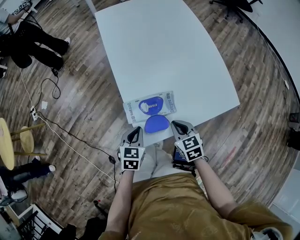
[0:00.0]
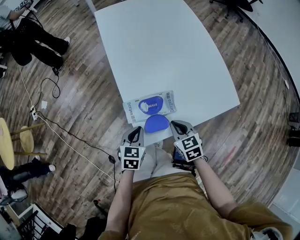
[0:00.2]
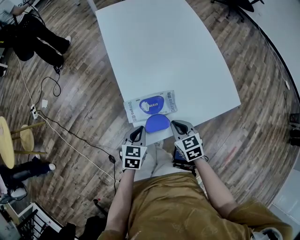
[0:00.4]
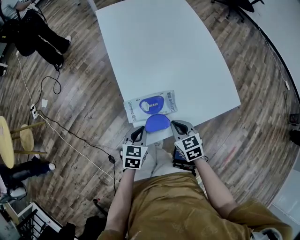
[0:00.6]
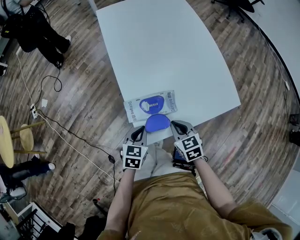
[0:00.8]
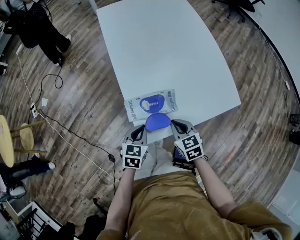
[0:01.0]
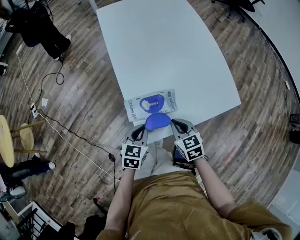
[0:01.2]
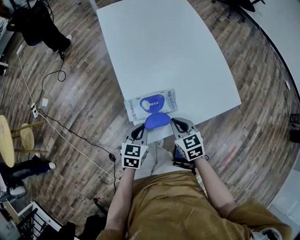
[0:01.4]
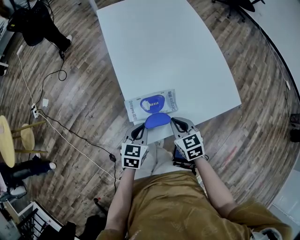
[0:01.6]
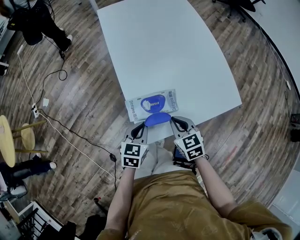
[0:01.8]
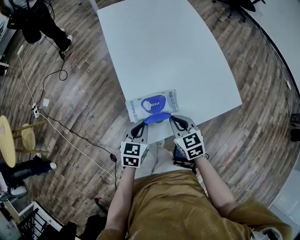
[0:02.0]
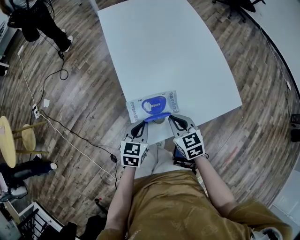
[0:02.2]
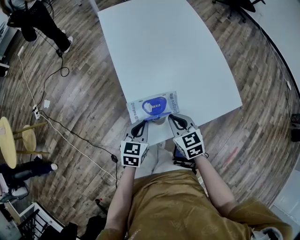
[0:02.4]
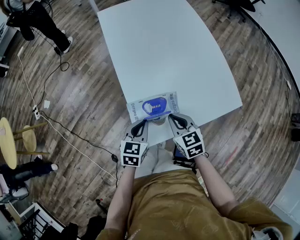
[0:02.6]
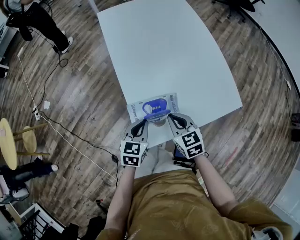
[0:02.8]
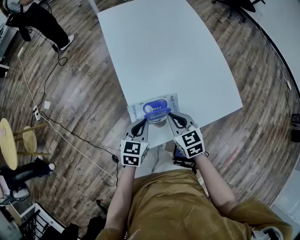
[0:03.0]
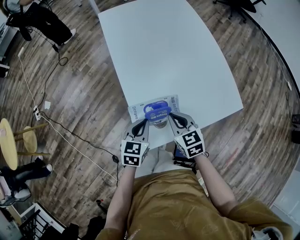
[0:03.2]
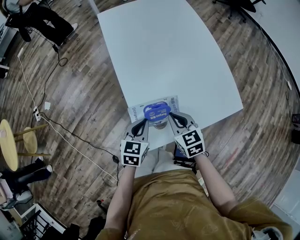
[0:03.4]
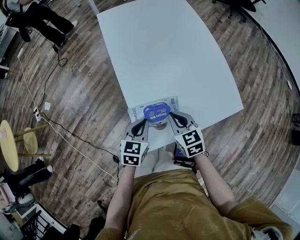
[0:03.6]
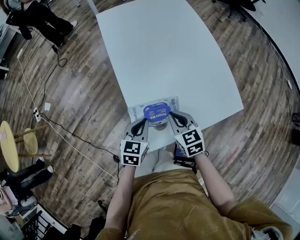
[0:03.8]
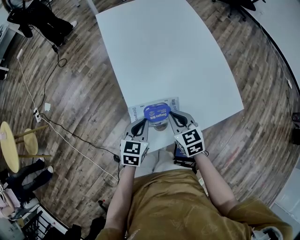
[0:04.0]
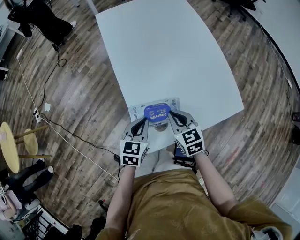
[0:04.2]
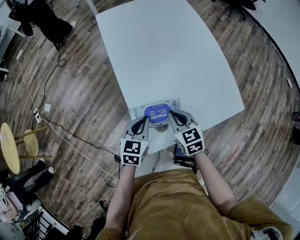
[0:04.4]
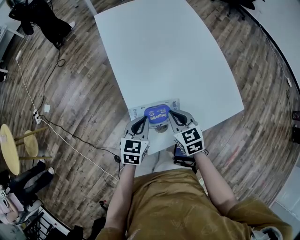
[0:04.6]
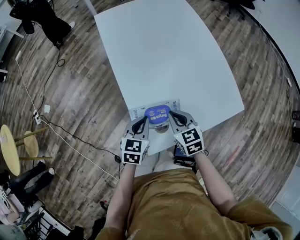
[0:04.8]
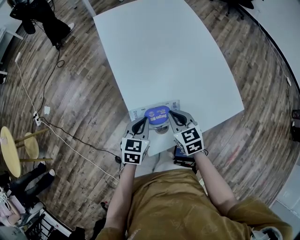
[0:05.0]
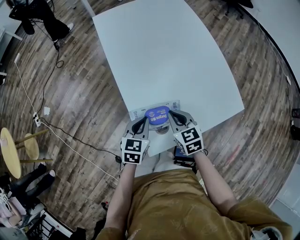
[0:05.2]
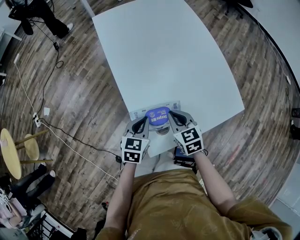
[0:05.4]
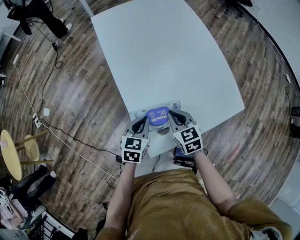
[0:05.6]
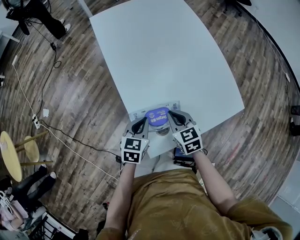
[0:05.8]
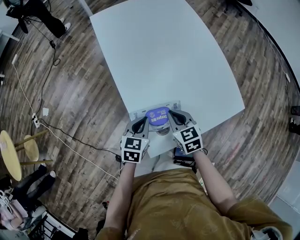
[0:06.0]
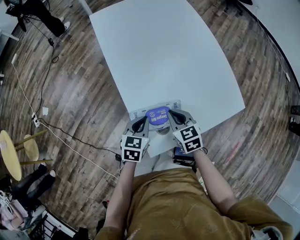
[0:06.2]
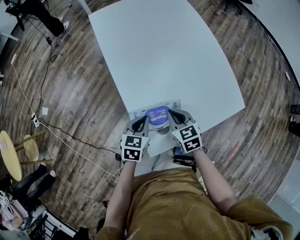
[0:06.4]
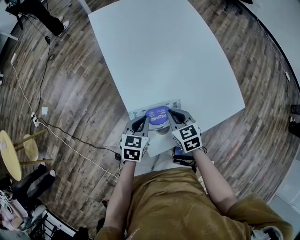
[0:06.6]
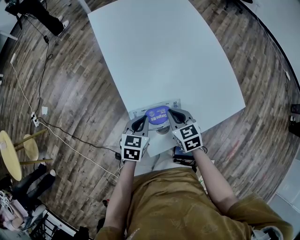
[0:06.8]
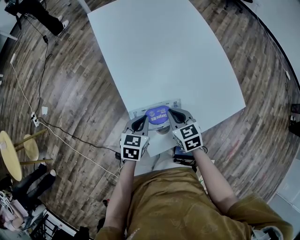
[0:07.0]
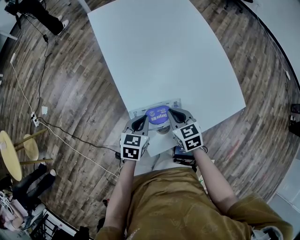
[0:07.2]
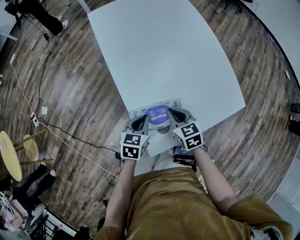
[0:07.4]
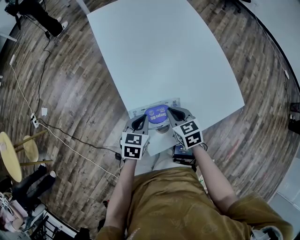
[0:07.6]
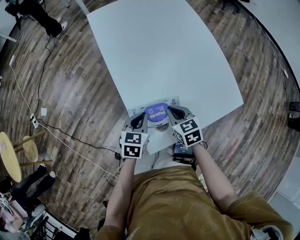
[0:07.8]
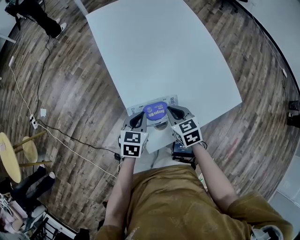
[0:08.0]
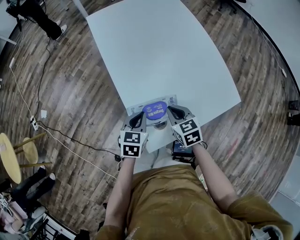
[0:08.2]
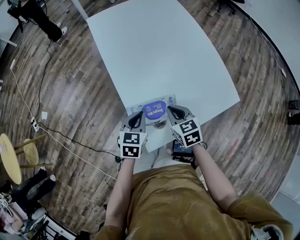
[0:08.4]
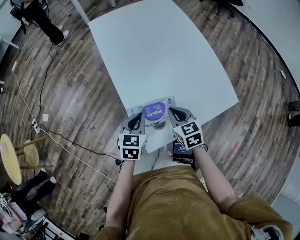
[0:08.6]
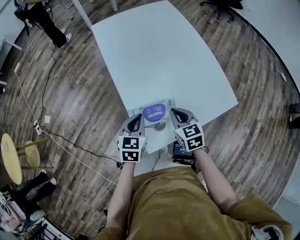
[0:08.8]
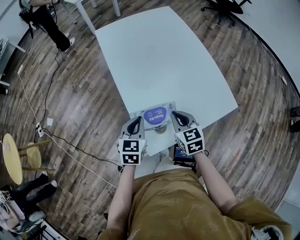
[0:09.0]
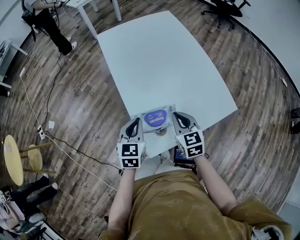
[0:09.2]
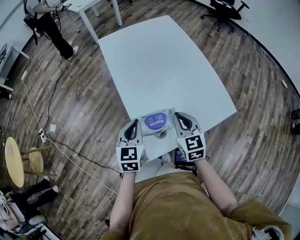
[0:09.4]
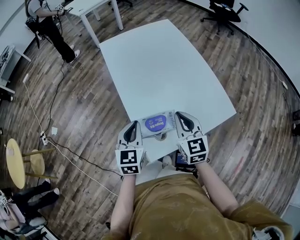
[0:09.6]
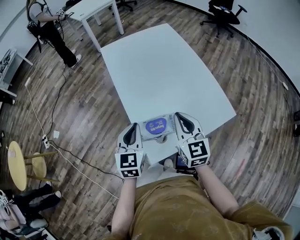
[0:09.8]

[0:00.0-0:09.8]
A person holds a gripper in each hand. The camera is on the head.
0:00.0 to 0:01.4: The grippers stay close to where they were, moving slightly.
0:01.4 to 0:02.8: The right gripper shifts by some 5 cm.
0:02.8 to 0:05.6: There are only small adjustments of the grippers.
0:05.6 to 0:08.4: There are only small adjustments of the grippers.
0:08.4 to 0:09.8: Both grippers move upward, about 15 cm. The right gripper changes its angle by roughly 30 degrees. Meanwhile the left gripper changes its angle by some 20 degrees.

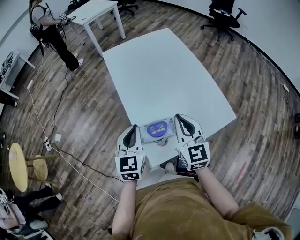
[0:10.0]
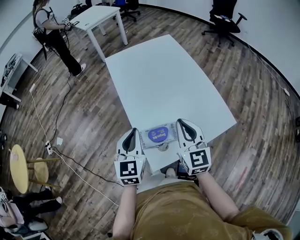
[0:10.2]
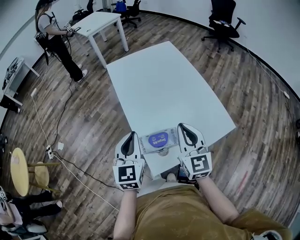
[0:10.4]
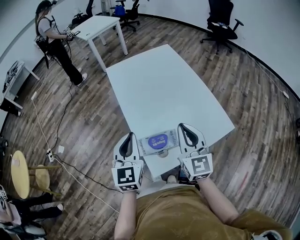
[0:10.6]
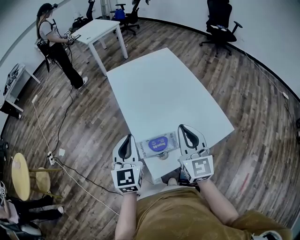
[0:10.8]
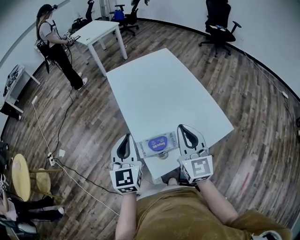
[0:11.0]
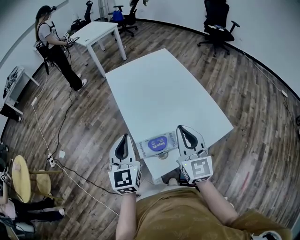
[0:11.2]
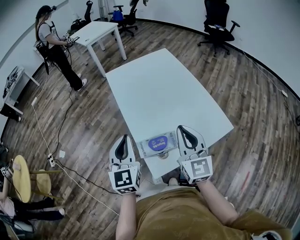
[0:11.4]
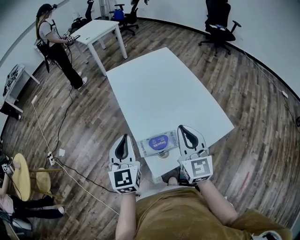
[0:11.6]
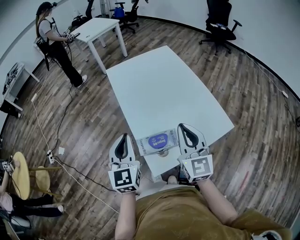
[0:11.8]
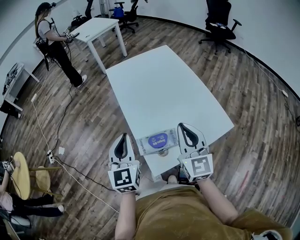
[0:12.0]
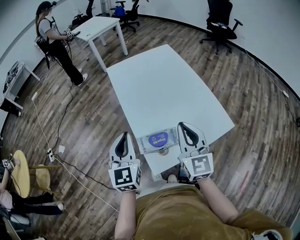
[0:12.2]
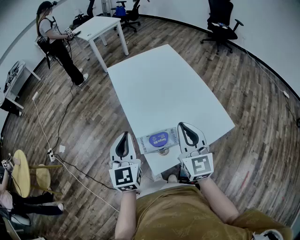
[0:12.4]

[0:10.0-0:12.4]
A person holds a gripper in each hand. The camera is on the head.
0:10.0 to 0:11.2: The two grippers go roughly 10 cm upward.
0:11.2 to 0:12.4: The grippers make only small movements.

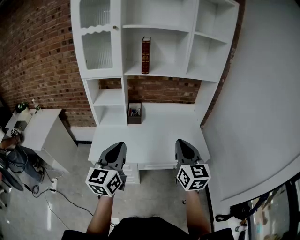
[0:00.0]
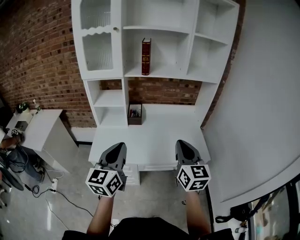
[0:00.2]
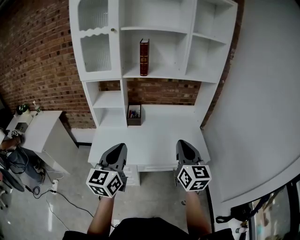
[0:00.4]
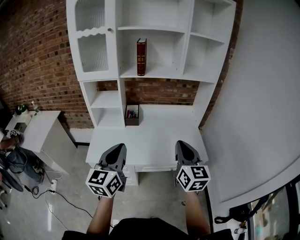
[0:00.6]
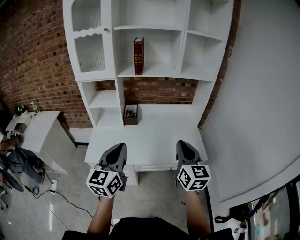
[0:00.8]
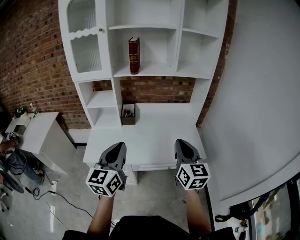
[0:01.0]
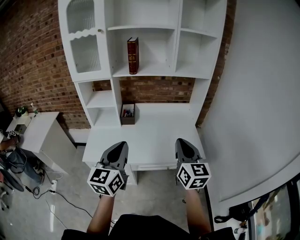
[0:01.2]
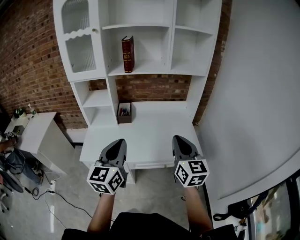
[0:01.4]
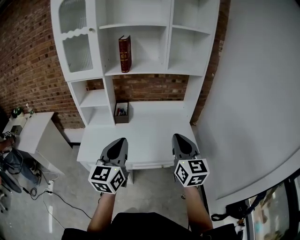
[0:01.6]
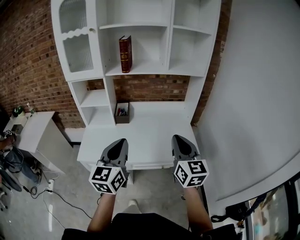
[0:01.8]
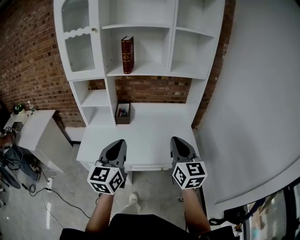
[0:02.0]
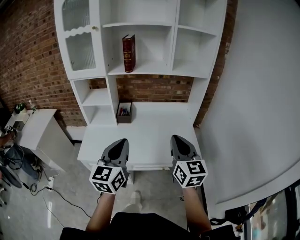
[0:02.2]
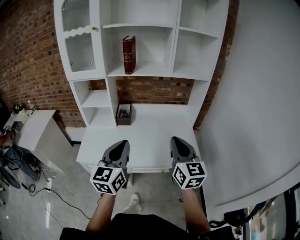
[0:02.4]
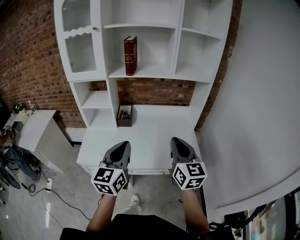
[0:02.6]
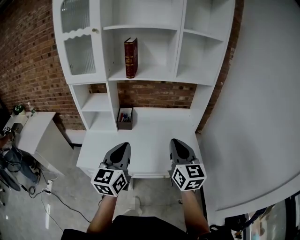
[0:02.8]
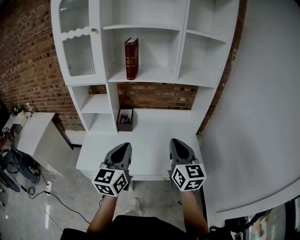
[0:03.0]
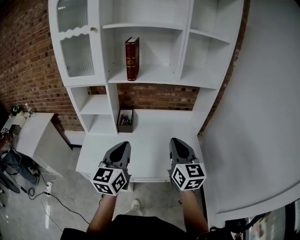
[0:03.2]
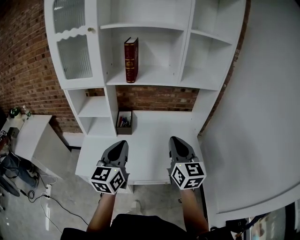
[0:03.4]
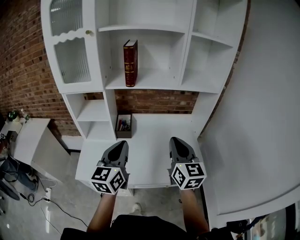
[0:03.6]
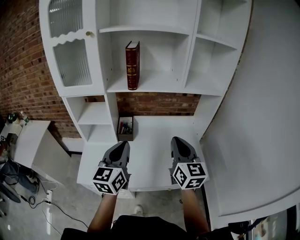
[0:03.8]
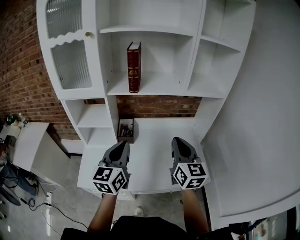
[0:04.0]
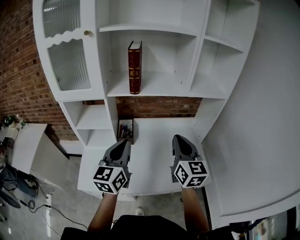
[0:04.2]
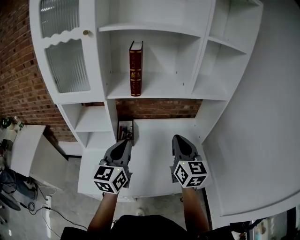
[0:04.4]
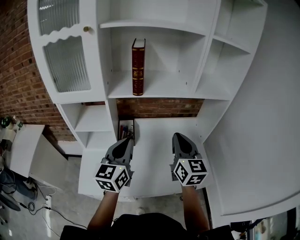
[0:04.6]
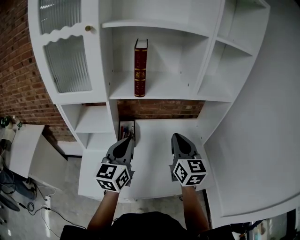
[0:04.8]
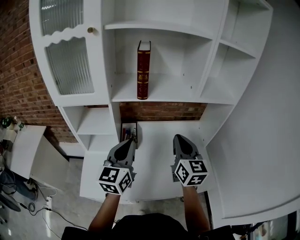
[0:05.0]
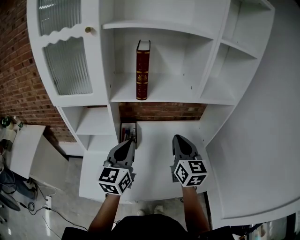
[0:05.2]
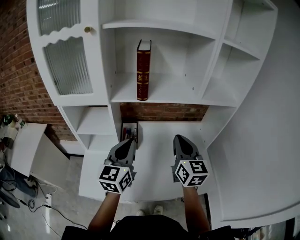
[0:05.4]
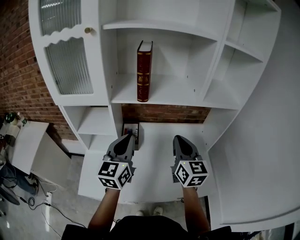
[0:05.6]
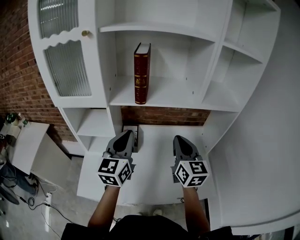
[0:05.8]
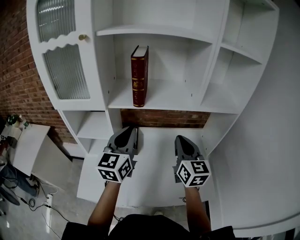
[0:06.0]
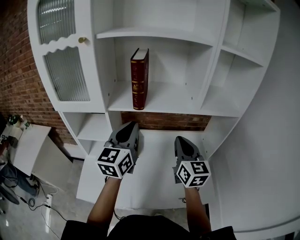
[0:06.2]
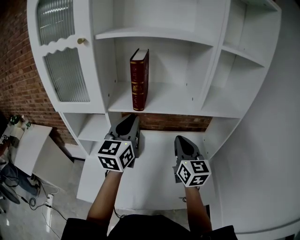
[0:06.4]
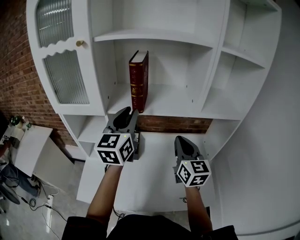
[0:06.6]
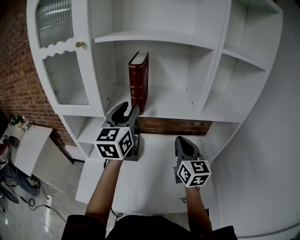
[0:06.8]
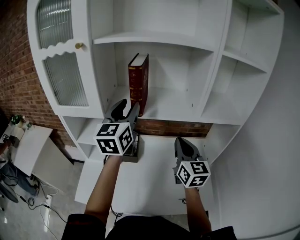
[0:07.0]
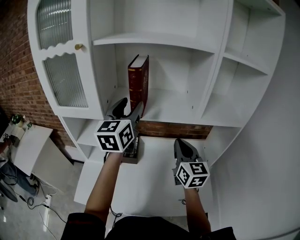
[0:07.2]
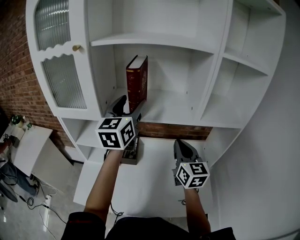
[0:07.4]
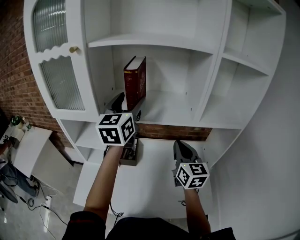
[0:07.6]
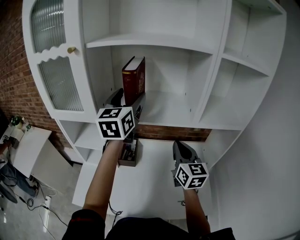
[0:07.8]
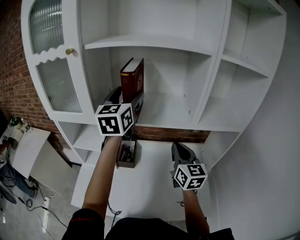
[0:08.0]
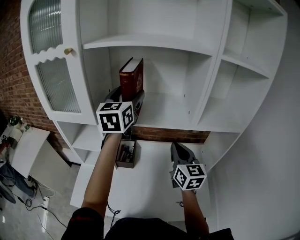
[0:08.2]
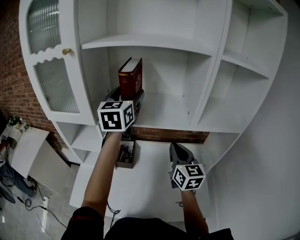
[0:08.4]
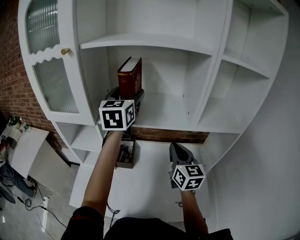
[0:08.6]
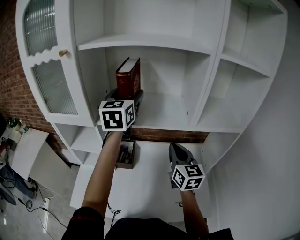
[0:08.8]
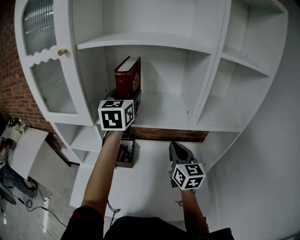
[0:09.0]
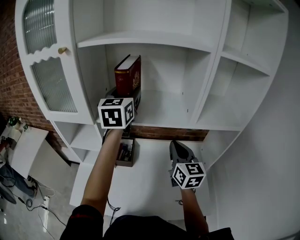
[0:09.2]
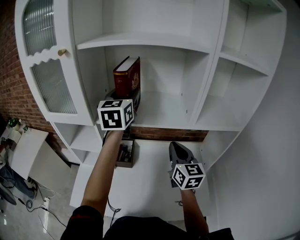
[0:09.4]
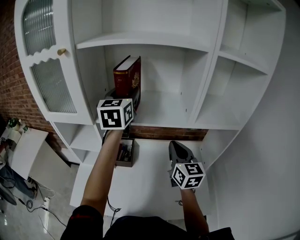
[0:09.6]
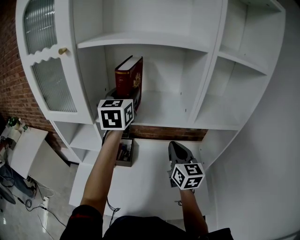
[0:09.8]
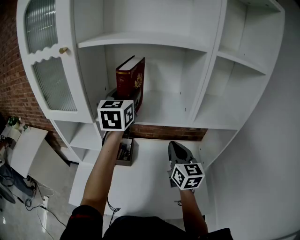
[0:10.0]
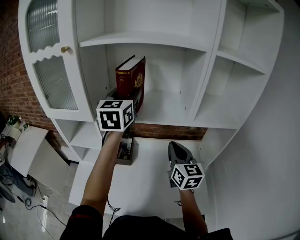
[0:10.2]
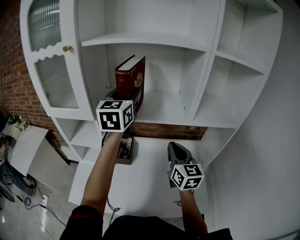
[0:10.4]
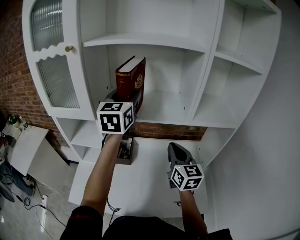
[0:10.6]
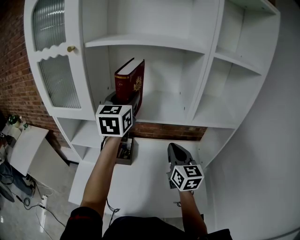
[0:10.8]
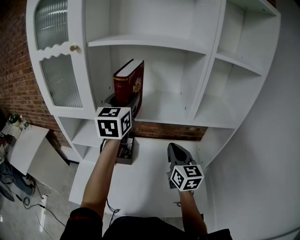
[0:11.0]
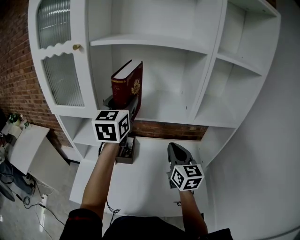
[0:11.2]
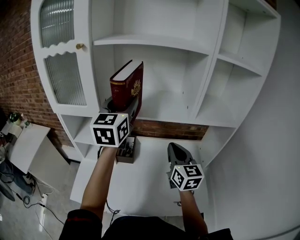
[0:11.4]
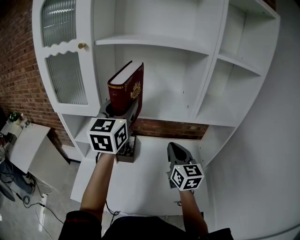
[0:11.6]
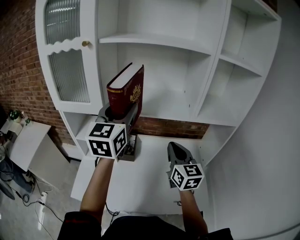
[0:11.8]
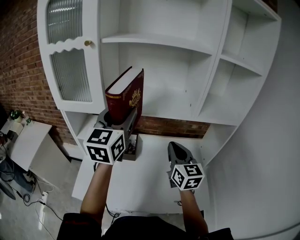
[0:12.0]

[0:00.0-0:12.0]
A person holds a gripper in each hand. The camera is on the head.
0:00.0 to 0:01.6: The grippers both shift to the right by about 10 cm.
0:01.6 to 0:03.0: Both grippers travel together forward, roughly 10 cm.
0:03.0 to 0:04.4: The right gripper is displaced forward by roughly 15 cm; the left gripper shifts some 20 cm forward and to the left.
0:04.4 to 0:06.0: Both grippers travel together forward, approximately 10 cm.
0:06.0 to 0:07.6: The right gripper moves forward, roughly 5 cm. The left gripper heads forward and upward, covering some 15 cm, and opens its fingers.
0:07.6 to 0:09.0: The left gripper moves forward, approximately 5 cm.
0:09.0 to 0:10.4: There are only small adjustments of the grippers.
0:10.4 to 0:12.0: The right gripper ends up about 5 cm from where it was, while the left gripper heads backward and to the left, covering some 15 cm.
